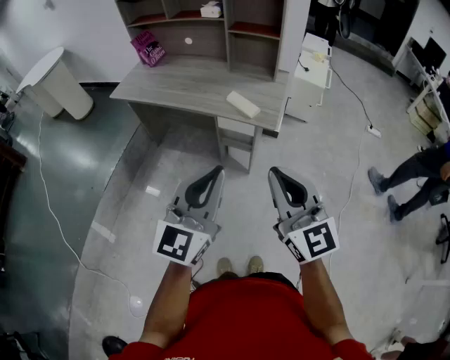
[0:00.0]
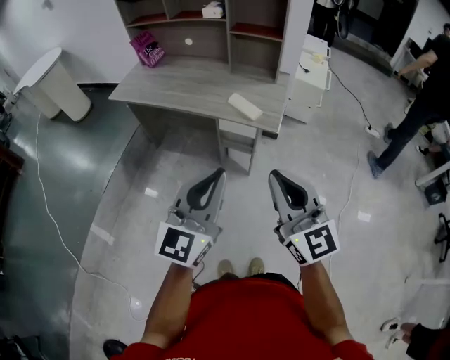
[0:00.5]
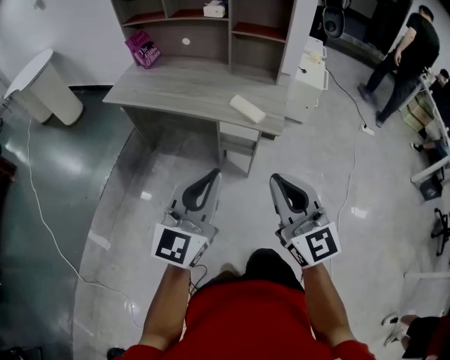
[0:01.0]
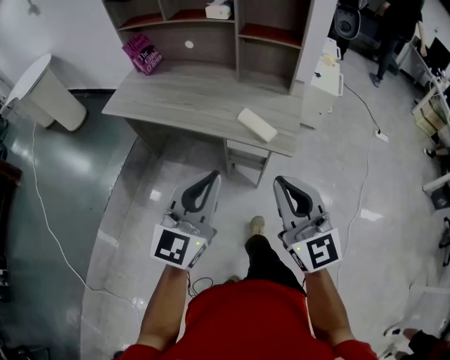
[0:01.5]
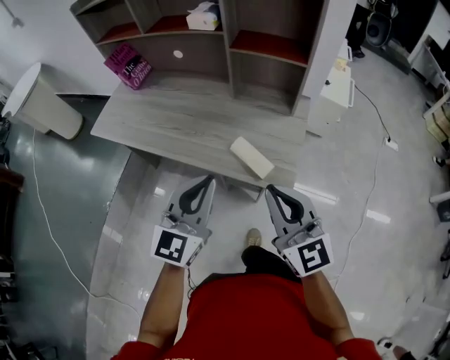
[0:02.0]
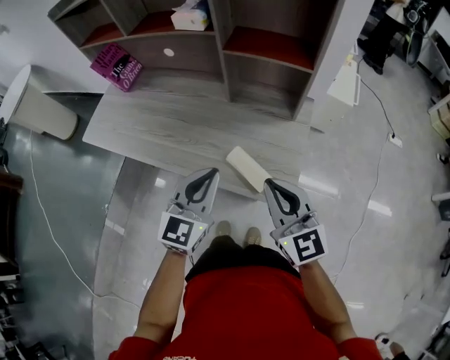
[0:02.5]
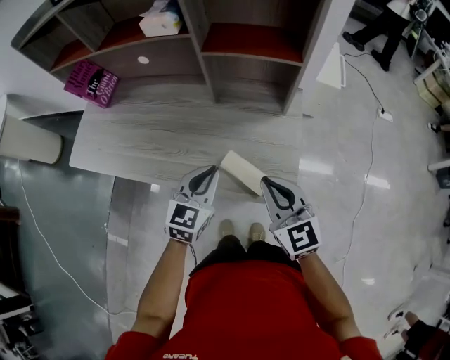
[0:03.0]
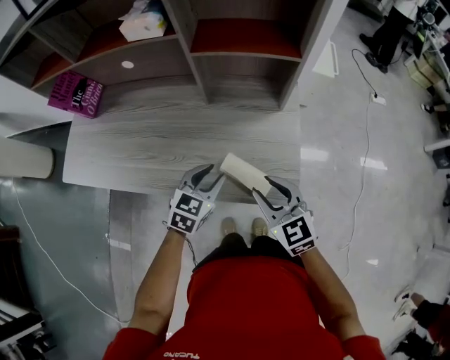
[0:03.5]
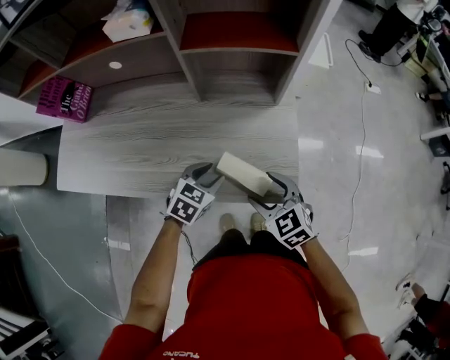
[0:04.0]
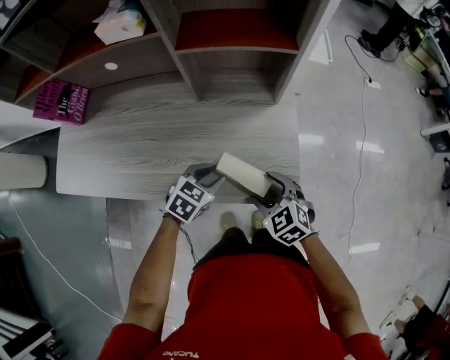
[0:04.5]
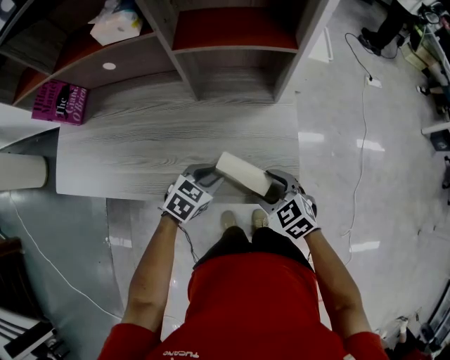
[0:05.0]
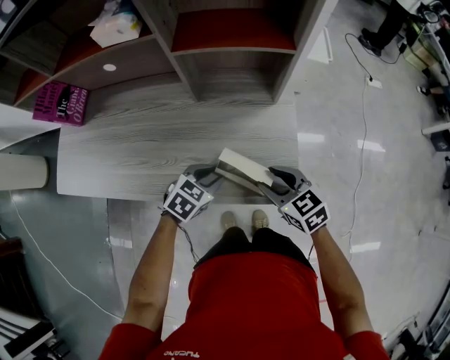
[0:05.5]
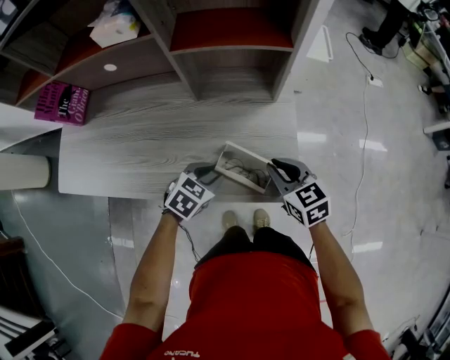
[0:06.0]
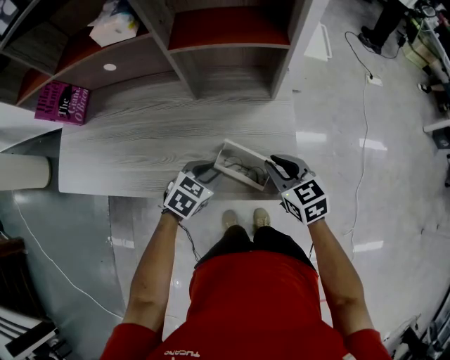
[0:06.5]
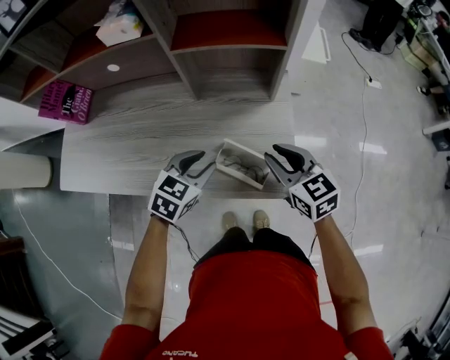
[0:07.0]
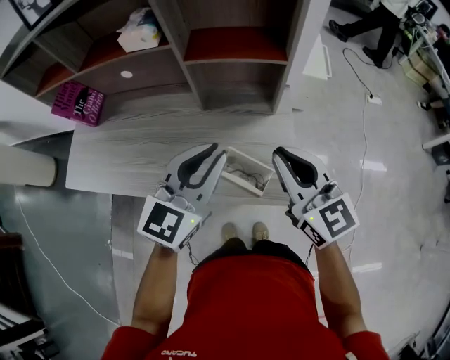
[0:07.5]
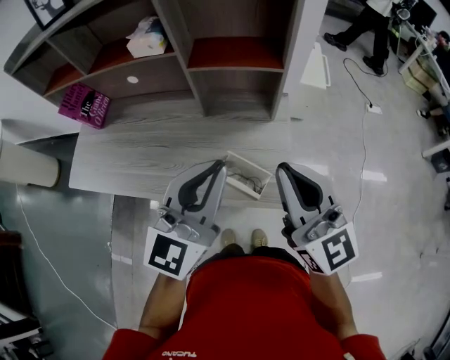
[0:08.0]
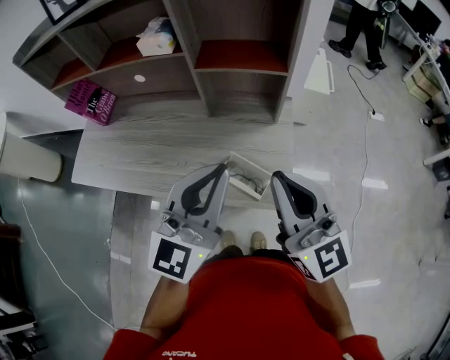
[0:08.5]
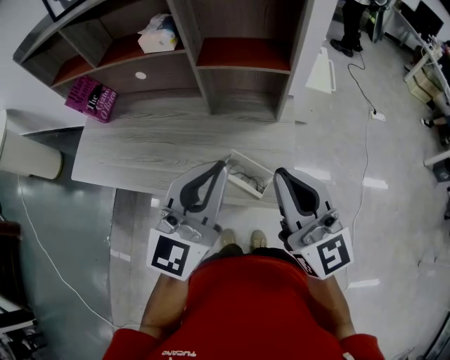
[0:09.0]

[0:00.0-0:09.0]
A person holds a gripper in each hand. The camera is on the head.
0.0 to 2.0 s: The grippers both shift forward by approximately 30 cm.
2.0 to 4.5 s: The grippers both shift downward and forward by some 30 cm. The right gripper tilts its fingers roughly 50 degrees downward, and opens up. Meanwhile the left gripper angles its fingers downward, by approximately 50 degrees, and opens.
4.5 to 7.0 s: The right gripper heads upward and forward, covering about 15 cm, rotates about 30 degrees, and closes up. Meanwhile the left gripper goes roughly 10 cm upward.
7.0 to 9.0 s: Both grippers move upward, roughly 25 cm. The right gripper tilts its fingers roughly 40 degrees upward. The left gripper tilts its fingers about 50 degrees upward, and closes its fingers.

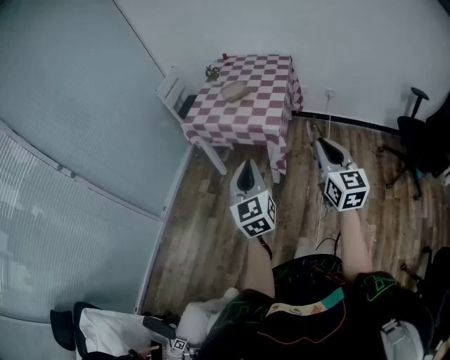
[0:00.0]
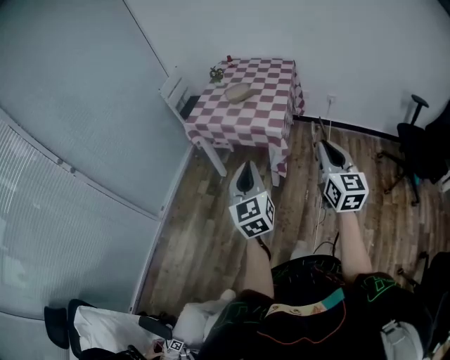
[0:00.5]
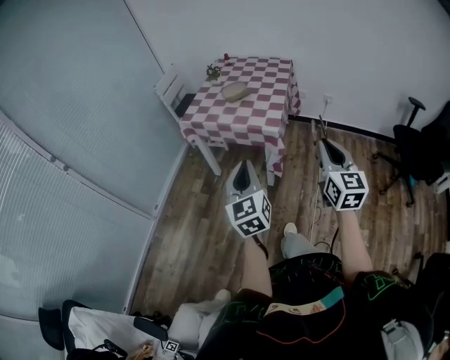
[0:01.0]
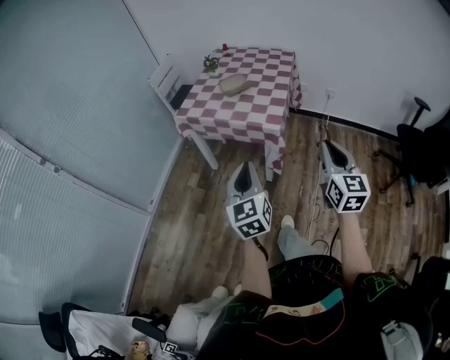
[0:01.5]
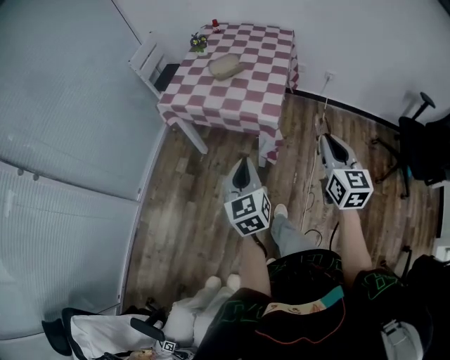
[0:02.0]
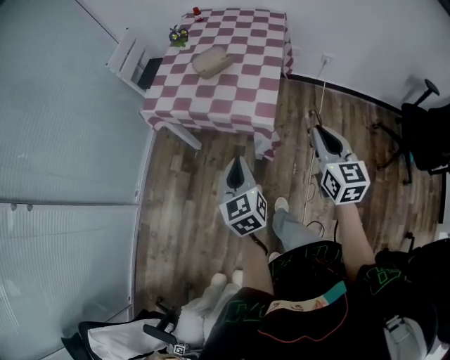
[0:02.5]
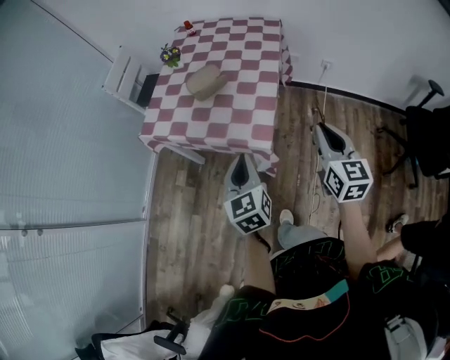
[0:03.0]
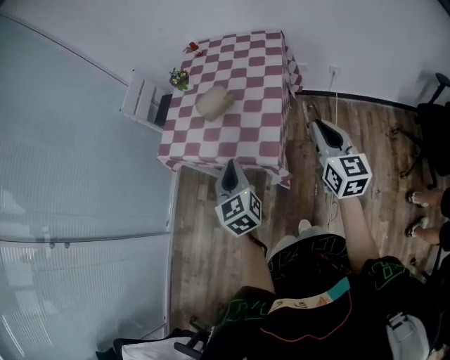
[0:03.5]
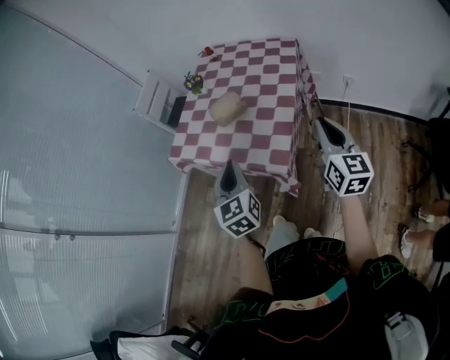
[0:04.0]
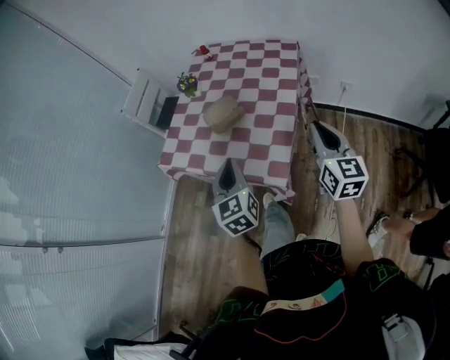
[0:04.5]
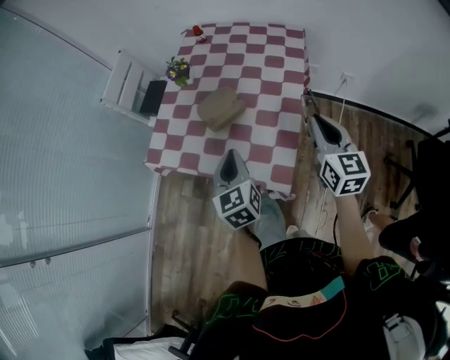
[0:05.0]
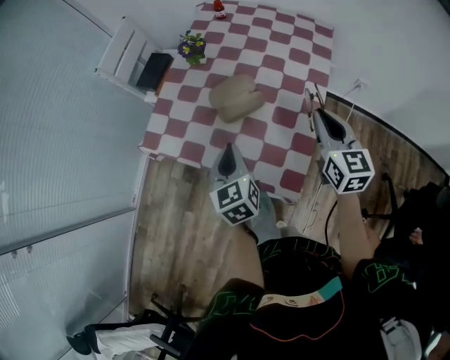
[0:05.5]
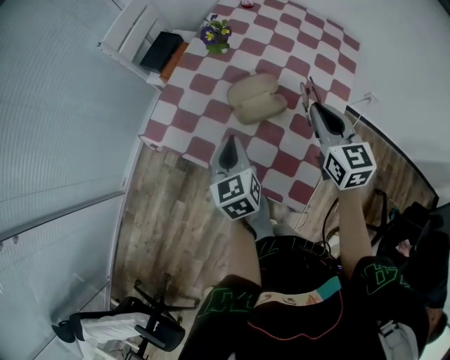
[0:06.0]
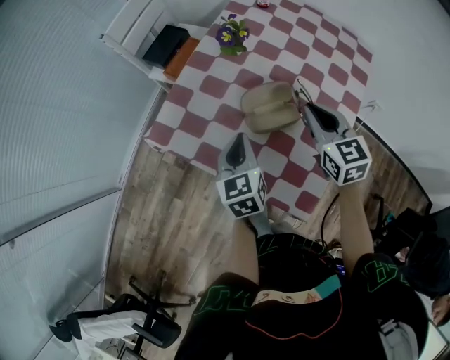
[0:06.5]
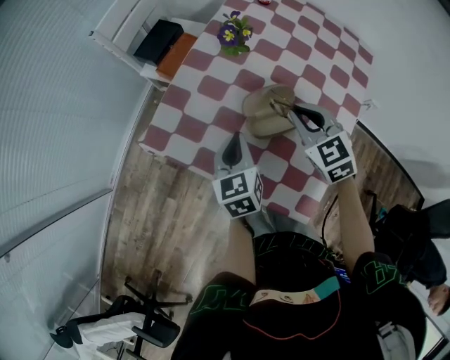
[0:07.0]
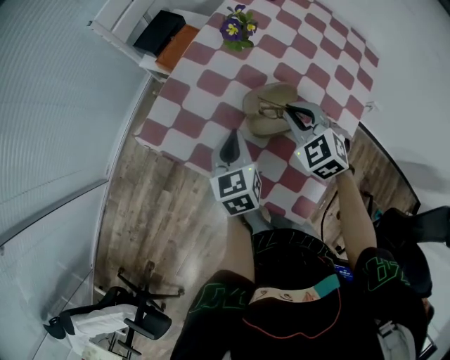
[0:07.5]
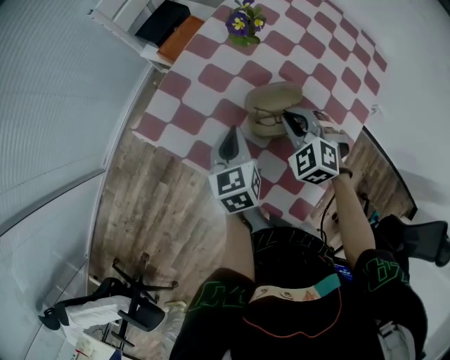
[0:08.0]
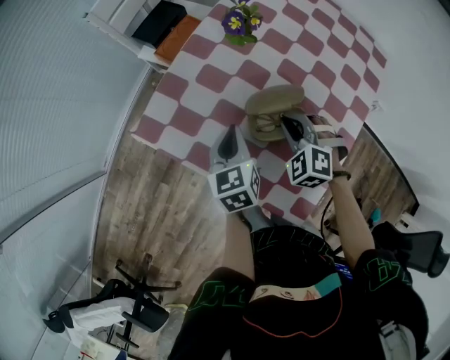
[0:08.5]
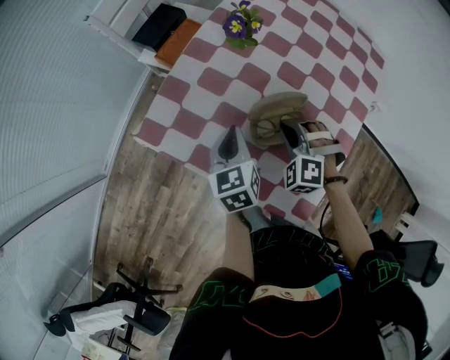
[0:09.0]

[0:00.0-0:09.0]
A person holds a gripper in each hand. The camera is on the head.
0.0 to 2.0 s: The grippers both shift forward and downward by about 15 cm.
2.0 to 4.5 s: The two grippers go roughly 30 cm forward.
4.5 to 7.0 s: The left gripper shifts some 30 cm forward, downward and to the left, and swivels some 20 degrees, while the right gripper travels forward, to the left and downward by approximately 40 cm, and points its fingers some 30 degrees further downward.
7.0 to 9.0 s: The right gripper heads downward, covering about 10 cm, and twists approximately 40 degrees counterclockwise, seen from behind.

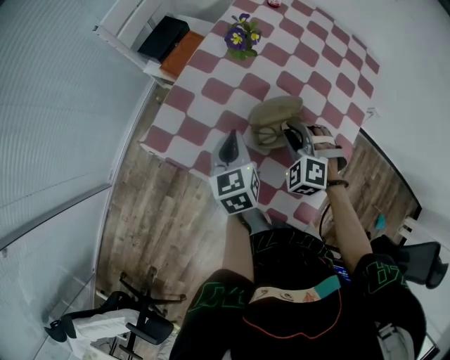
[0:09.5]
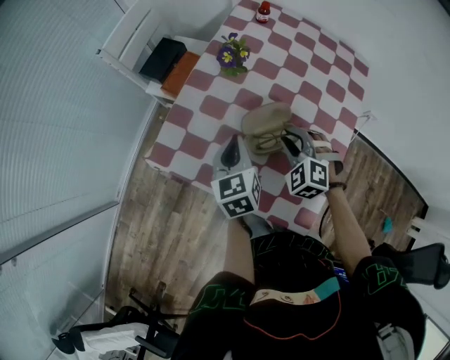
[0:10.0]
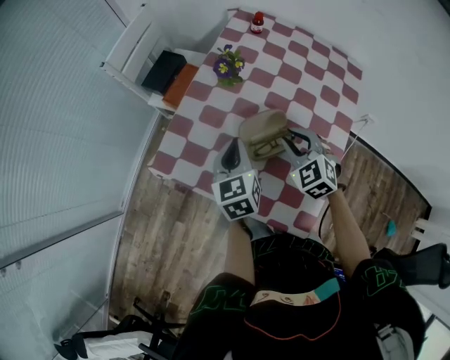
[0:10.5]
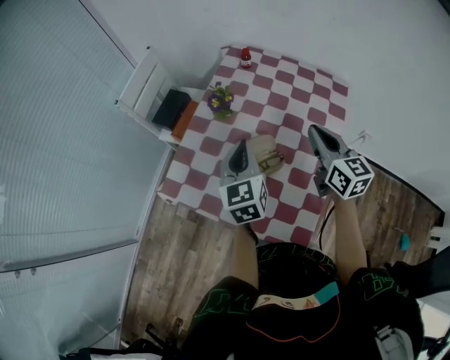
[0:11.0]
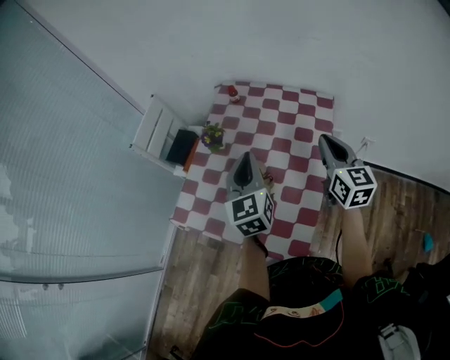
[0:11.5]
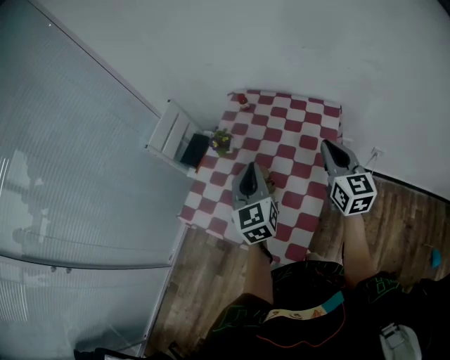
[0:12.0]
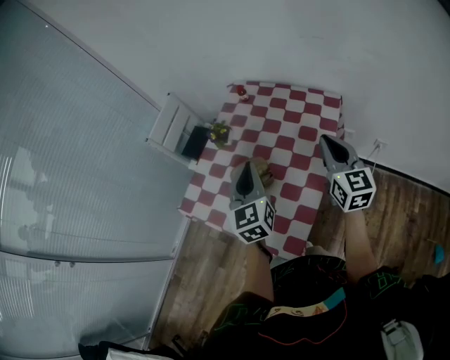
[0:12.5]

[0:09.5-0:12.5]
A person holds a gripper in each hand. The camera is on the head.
9.5 to 11.0 s: The grippers both shift upward and to the right by about 20 cm. The left gripper turns by about 20 degrees. The right gripper twists roughly 80 degrees clockwise, seen from behind, and closes up.
11.0 to 12.5 s: The right gripper travels to the right and upward by about 15 cm, while the left gripper moves to the right, upward and backward, roughly 15 cm.

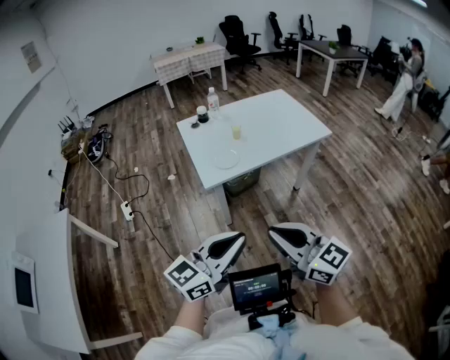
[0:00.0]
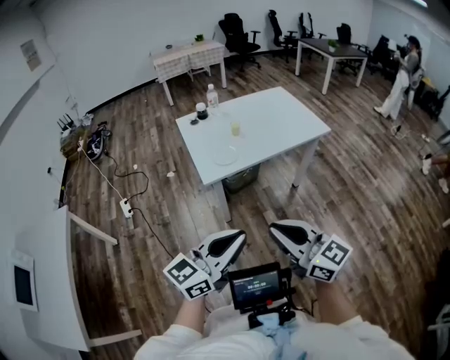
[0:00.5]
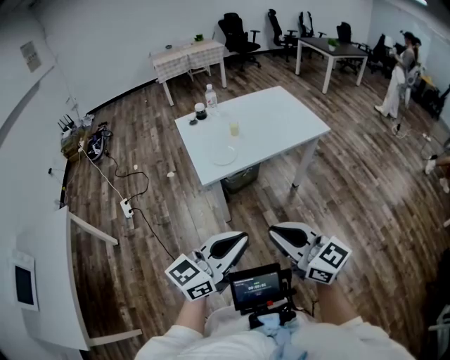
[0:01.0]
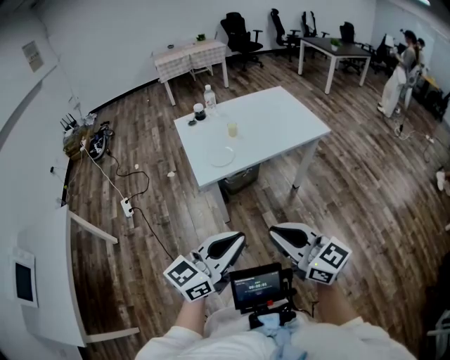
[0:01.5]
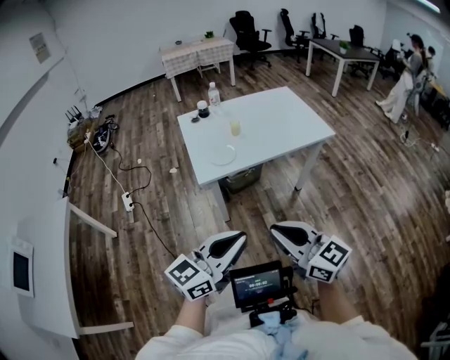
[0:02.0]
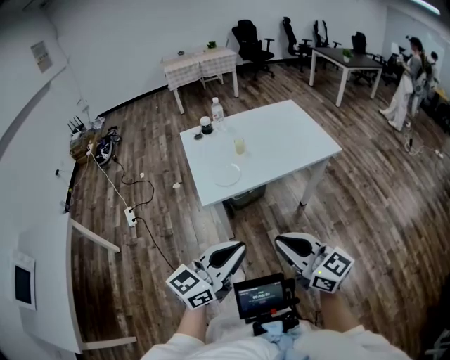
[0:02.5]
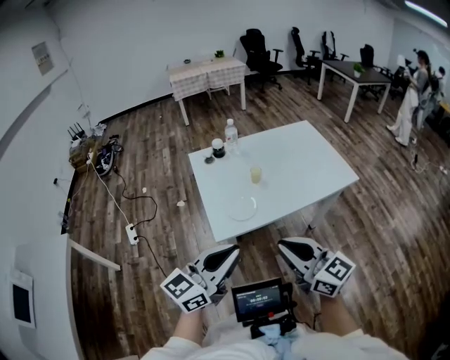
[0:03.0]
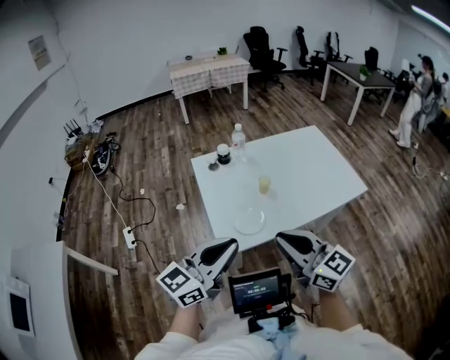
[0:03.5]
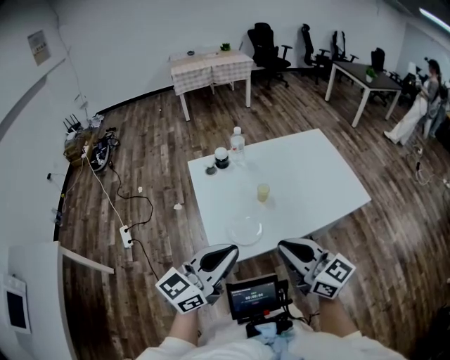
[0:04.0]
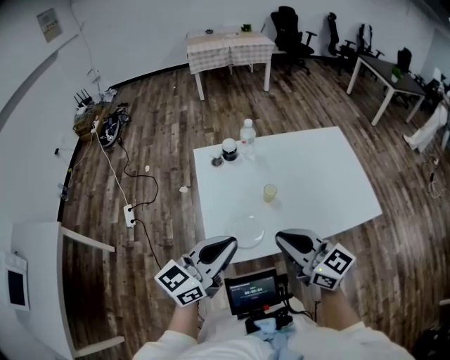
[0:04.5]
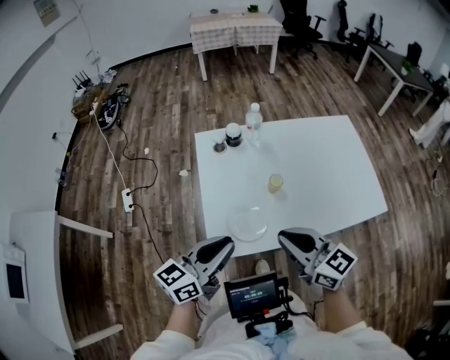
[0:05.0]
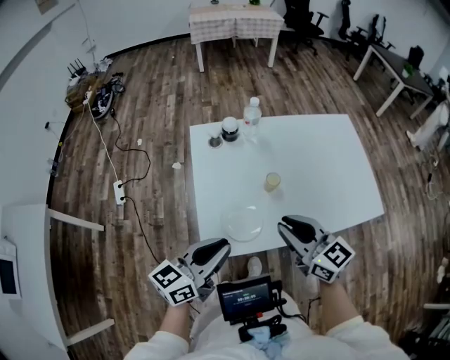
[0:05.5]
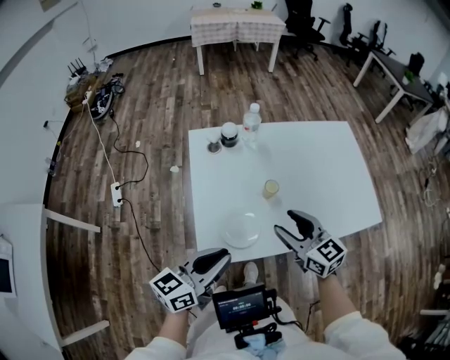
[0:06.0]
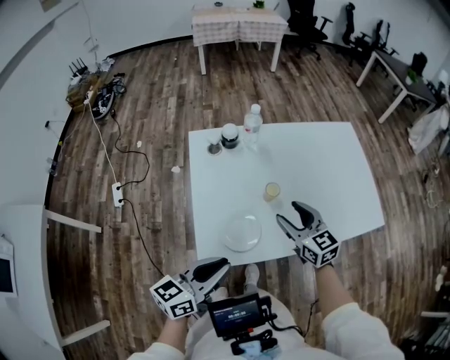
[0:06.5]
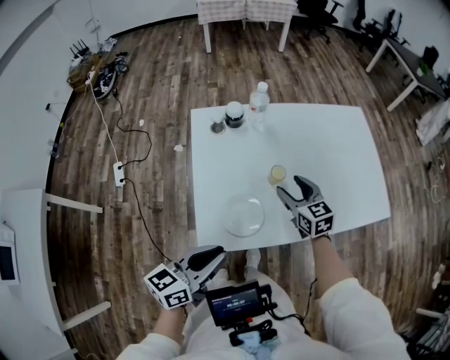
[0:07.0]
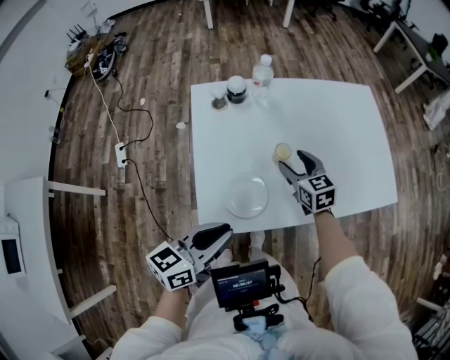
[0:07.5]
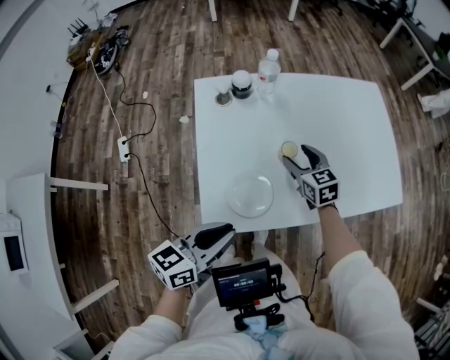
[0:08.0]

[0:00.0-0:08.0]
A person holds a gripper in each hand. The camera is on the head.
0.0 to 2.0 s: Both grippers move to the right, approximately 5 cm.
2.0 to 4.0 s: The two grippers go approximately 35 cm forward.
4.0 to 6.0 s: The right gripper goes approximately 20 cm forward and downward, and opens. The left gripper shifts some 15 cm downward and forward, and rotates some 20 degrees.
6.0 to 8.0 s: The right gripper heads forward and downward, covering approximately 20 cm.
